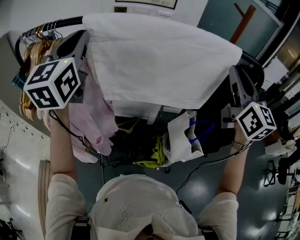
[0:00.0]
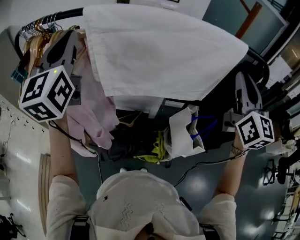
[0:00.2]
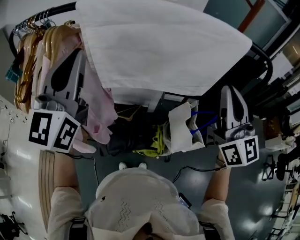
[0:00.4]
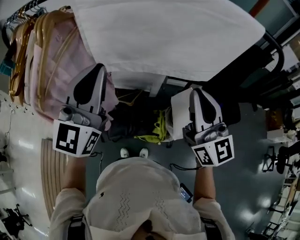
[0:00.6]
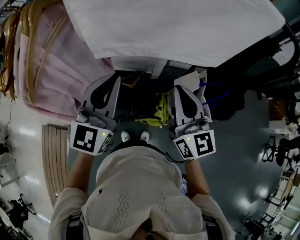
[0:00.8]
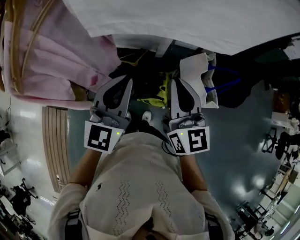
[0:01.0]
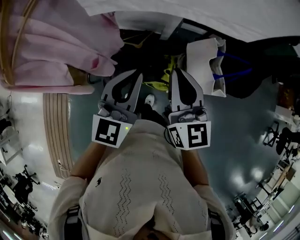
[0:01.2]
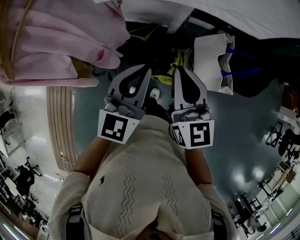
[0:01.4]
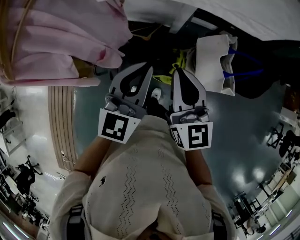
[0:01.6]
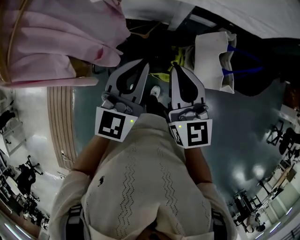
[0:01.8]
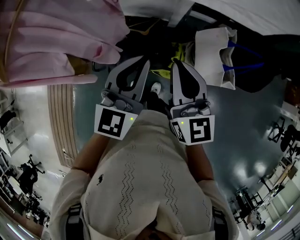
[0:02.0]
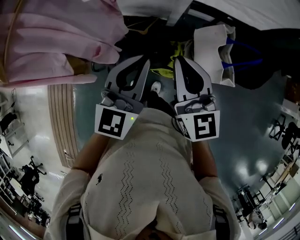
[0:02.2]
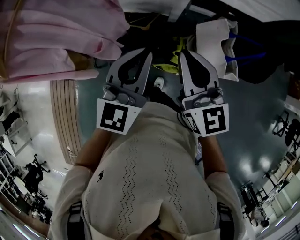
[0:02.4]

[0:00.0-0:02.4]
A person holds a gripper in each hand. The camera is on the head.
0:00.0 to 0:01.2: The left gripper shifts approximately 40 cm downward, to the right and backward, and changes its angle by about 20 degrees, while the right gripper heads downward and to the left, covering about 35 cm.
0:01.2 to 0:02.4: There are only small adjustments of the grippers.

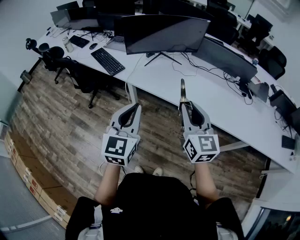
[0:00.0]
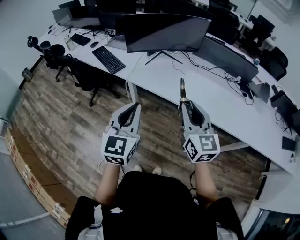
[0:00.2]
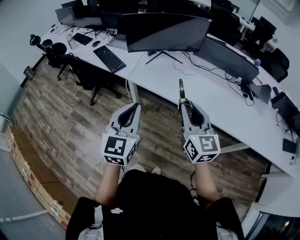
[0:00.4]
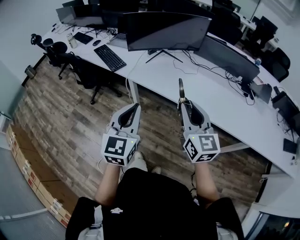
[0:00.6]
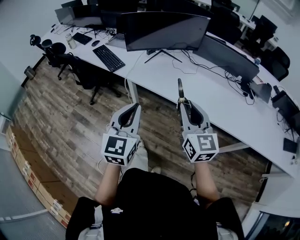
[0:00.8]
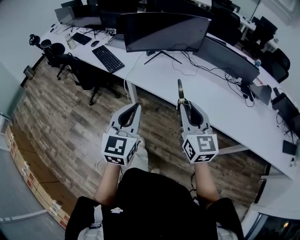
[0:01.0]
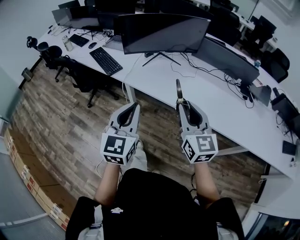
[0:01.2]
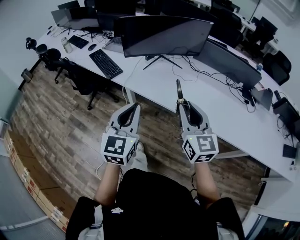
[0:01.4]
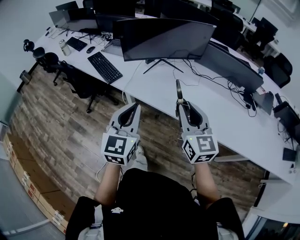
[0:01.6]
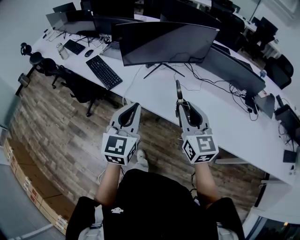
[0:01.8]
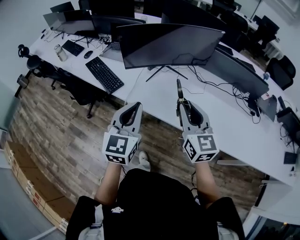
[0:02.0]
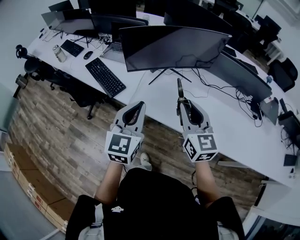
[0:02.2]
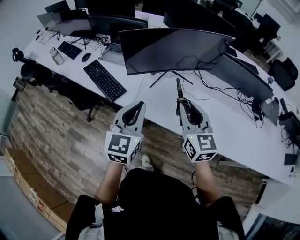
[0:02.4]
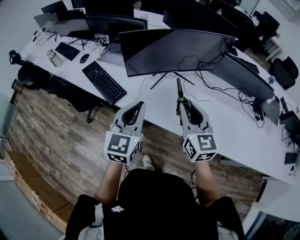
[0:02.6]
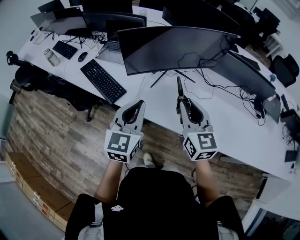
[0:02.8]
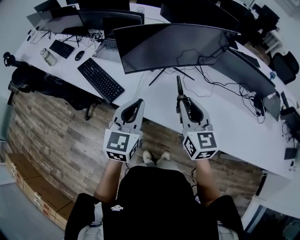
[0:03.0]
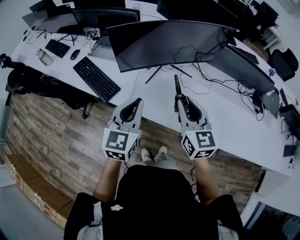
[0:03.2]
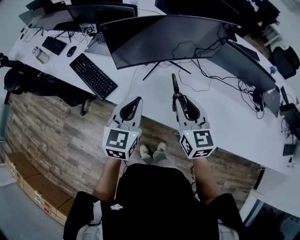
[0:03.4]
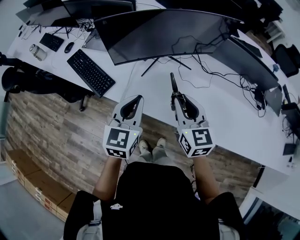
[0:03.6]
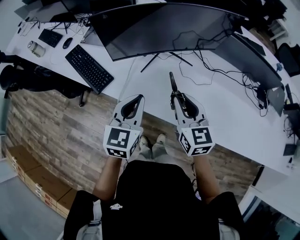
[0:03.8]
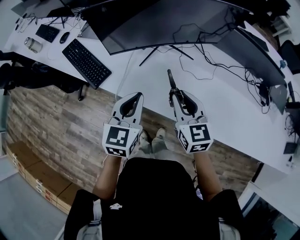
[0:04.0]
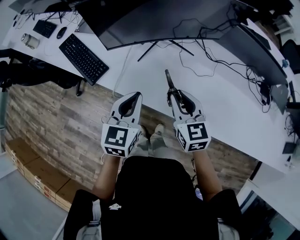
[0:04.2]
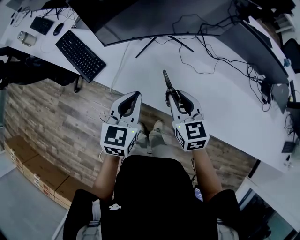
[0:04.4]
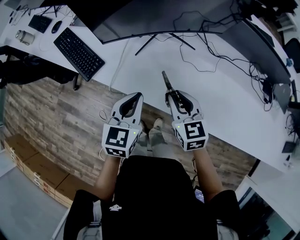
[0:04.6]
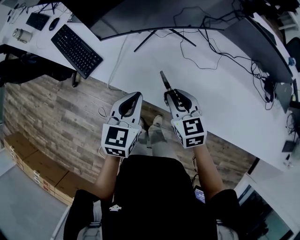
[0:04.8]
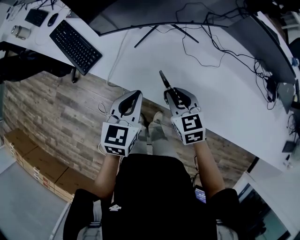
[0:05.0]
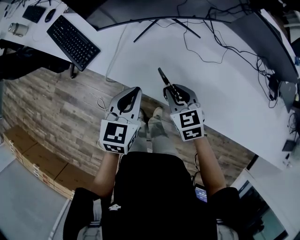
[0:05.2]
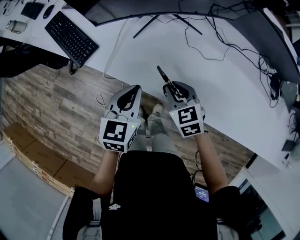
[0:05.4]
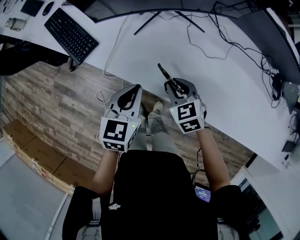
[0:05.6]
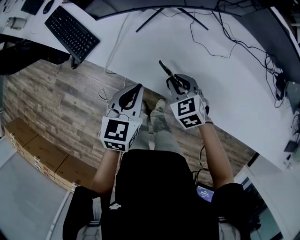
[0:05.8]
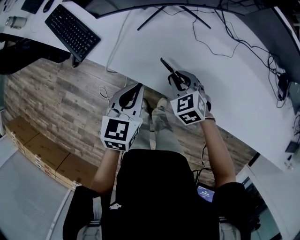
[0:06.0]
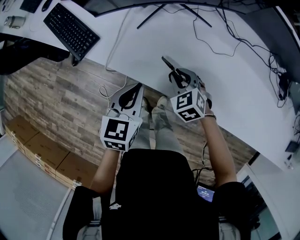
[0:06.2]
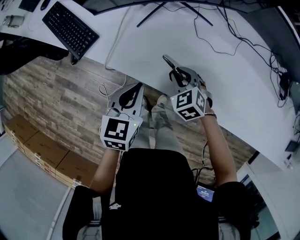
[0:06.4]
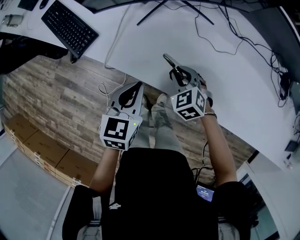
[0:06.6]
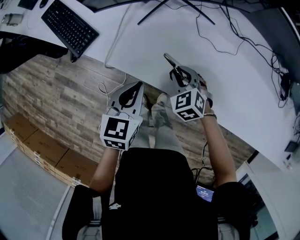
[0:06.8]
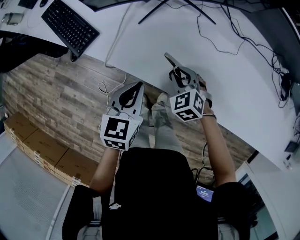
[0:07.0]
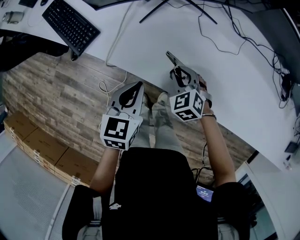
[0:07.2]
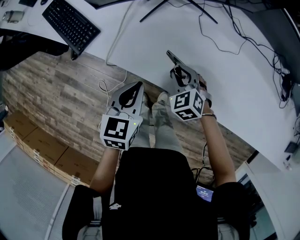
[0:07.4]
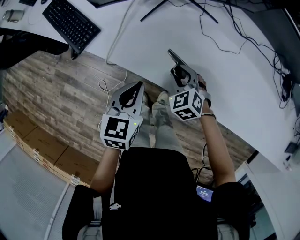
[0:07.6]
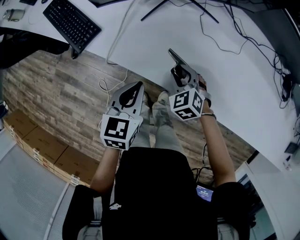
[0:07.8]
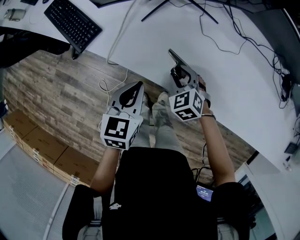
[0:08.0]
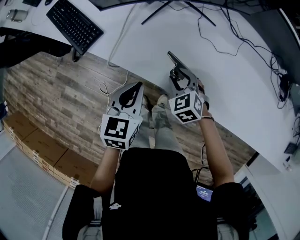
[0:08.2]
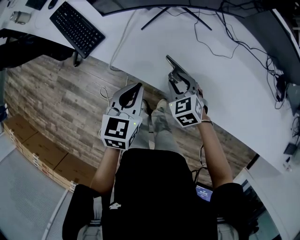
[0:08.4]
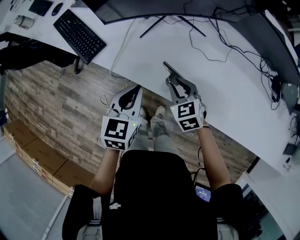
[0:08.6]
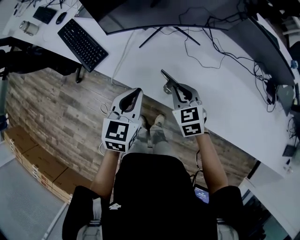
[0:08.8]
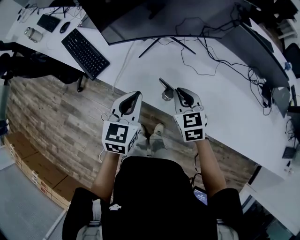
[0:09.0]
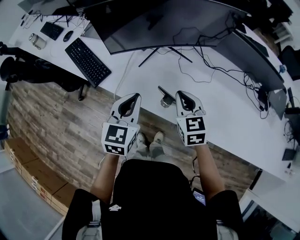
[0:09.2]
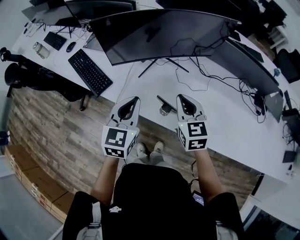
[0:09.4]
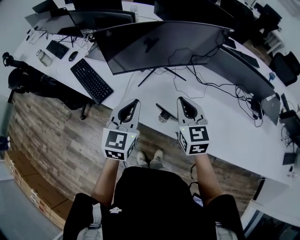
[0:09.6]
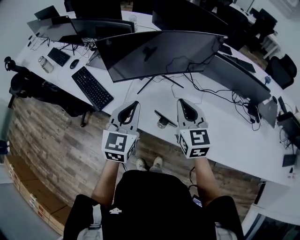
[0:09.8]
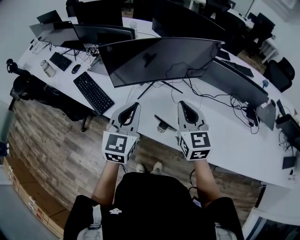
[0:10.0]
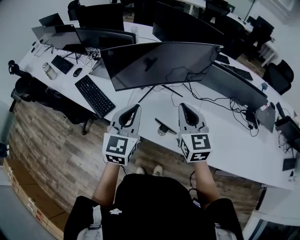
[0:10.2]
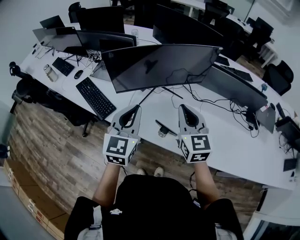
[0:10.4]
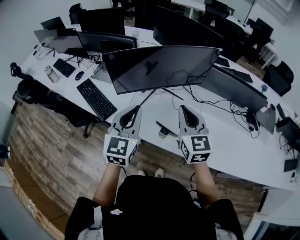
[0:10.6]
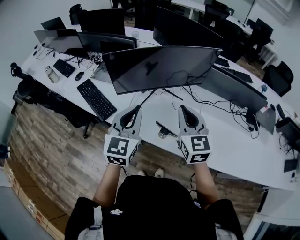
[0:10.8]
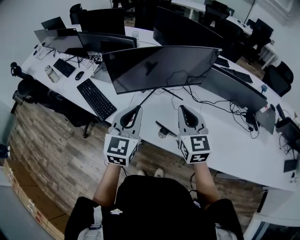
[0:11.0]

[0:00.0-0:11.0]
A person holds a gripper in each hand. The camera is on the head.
0:00.0 to 0:01.6: Both grippers move forward, some 10 cm.
0:01.6 to 0:03.2: The right gripper moves forward and to the left, roughly 25 cm; the left gripper travels forward by approximately 25 cm.
0:03.2 to 0:04.8: The left gripper goes roughly 15 cm downward and to the right. The right gripper is displaced downward by approximately 20 cm, and turns by about 30 degrees.
0:04.8 to 0:06.2: The left gripper shifts about 10 cm downward. The right gripper travels downward by some 15 cm, and turns by some 30 degrees.
0:06.2 to 0:07.8: There are only small adjustments of the grippers.
0:07.8 to 0:09.4: The grippers both shift upward by about 25 cm. The left gripper turns by roughly 20 degrees. The right gripper changes its angle by some 40 degrees, and closes its fingers.
0:09.4 to 0:11.0: Both grippers travel together upward, approximately 10 cm.

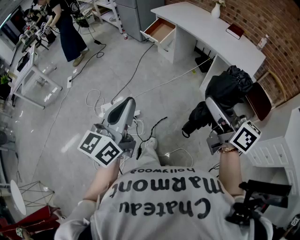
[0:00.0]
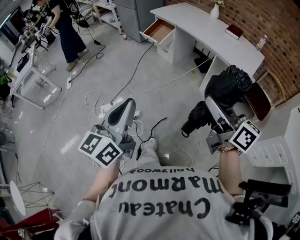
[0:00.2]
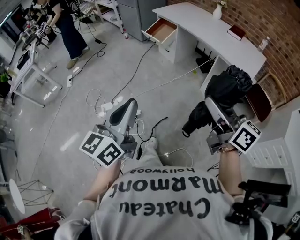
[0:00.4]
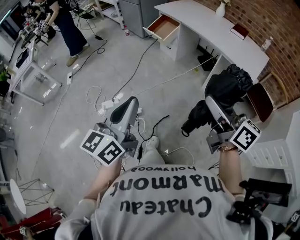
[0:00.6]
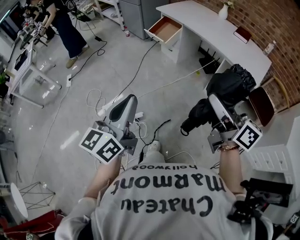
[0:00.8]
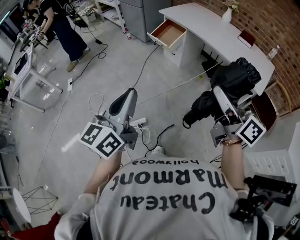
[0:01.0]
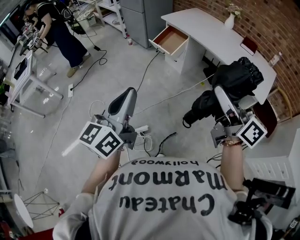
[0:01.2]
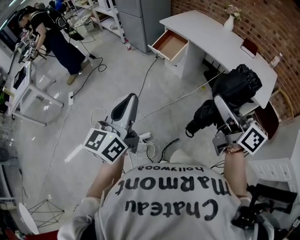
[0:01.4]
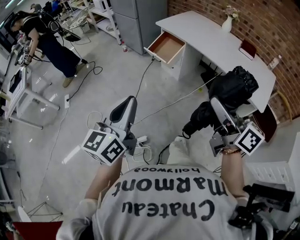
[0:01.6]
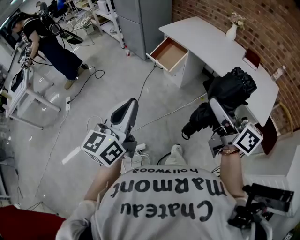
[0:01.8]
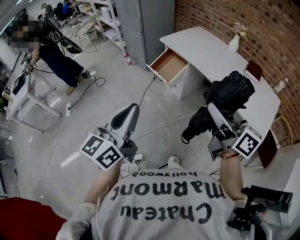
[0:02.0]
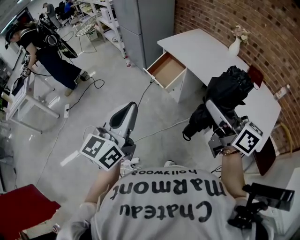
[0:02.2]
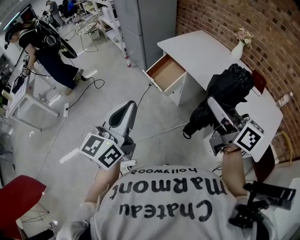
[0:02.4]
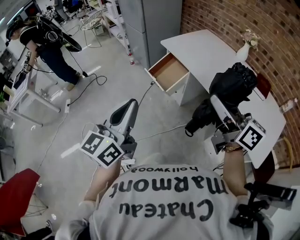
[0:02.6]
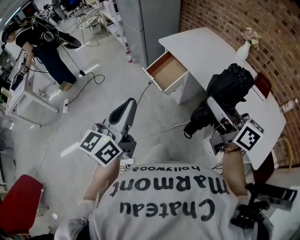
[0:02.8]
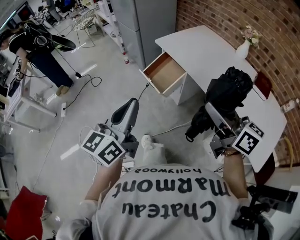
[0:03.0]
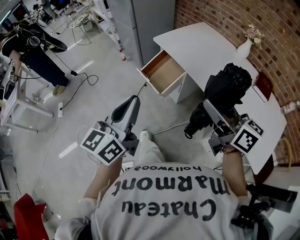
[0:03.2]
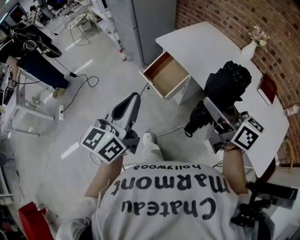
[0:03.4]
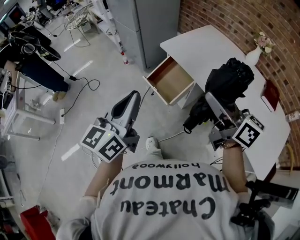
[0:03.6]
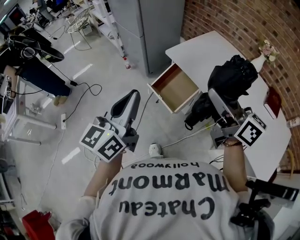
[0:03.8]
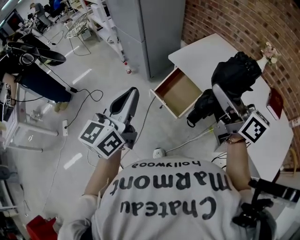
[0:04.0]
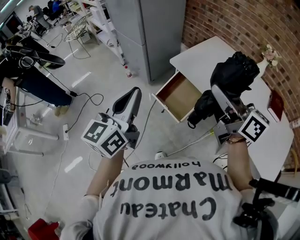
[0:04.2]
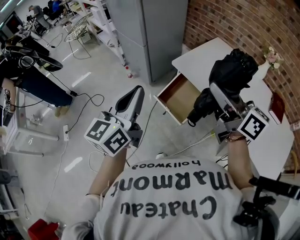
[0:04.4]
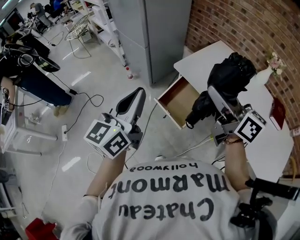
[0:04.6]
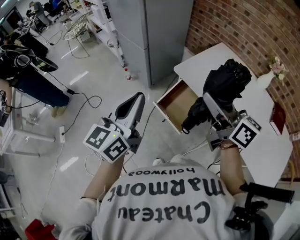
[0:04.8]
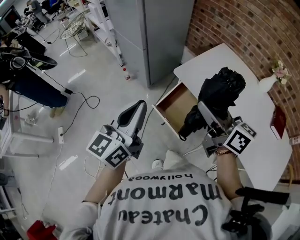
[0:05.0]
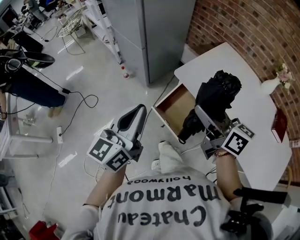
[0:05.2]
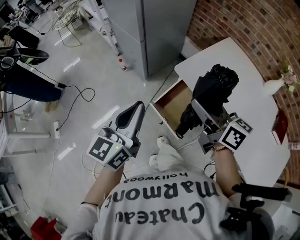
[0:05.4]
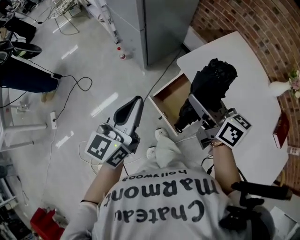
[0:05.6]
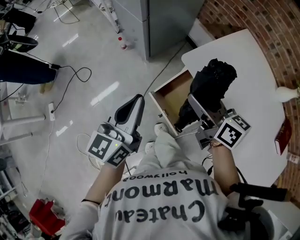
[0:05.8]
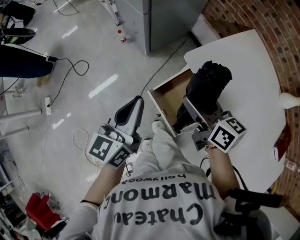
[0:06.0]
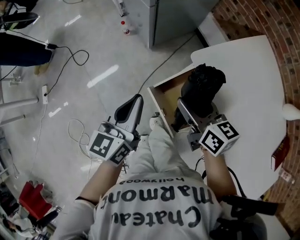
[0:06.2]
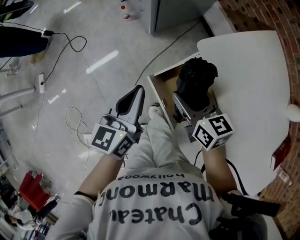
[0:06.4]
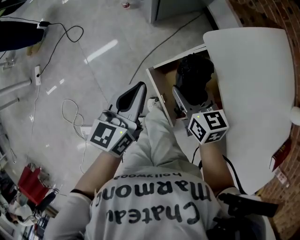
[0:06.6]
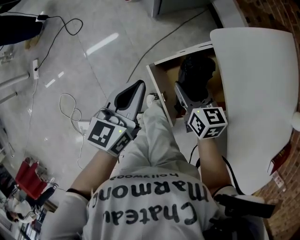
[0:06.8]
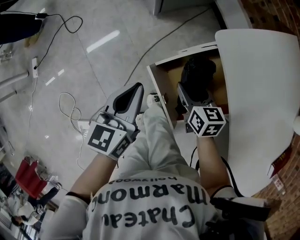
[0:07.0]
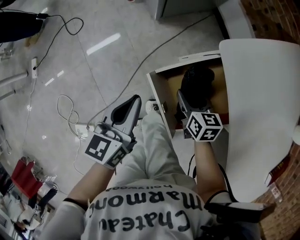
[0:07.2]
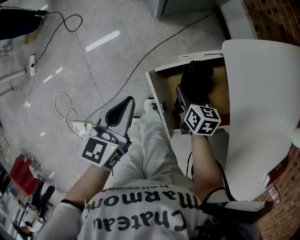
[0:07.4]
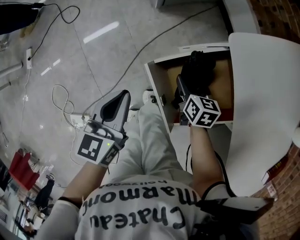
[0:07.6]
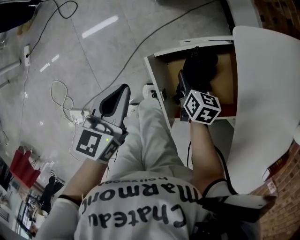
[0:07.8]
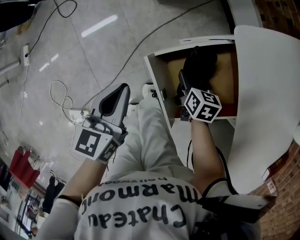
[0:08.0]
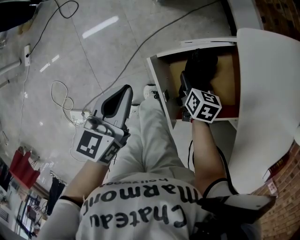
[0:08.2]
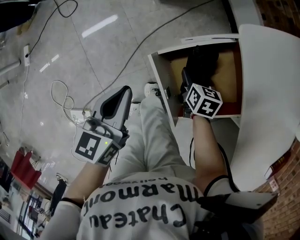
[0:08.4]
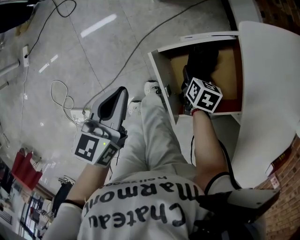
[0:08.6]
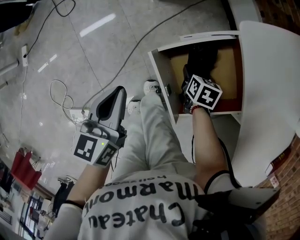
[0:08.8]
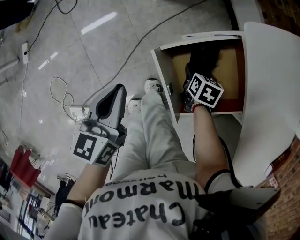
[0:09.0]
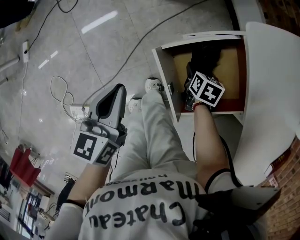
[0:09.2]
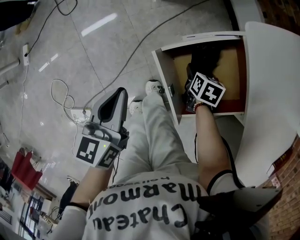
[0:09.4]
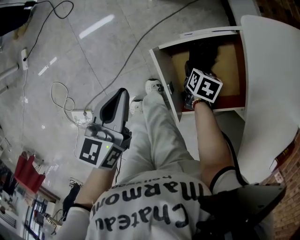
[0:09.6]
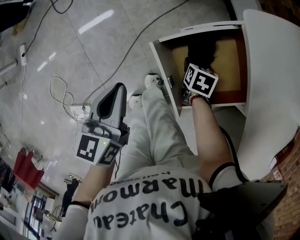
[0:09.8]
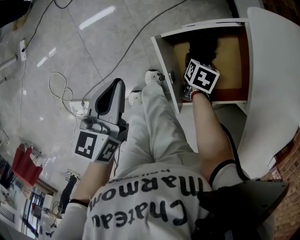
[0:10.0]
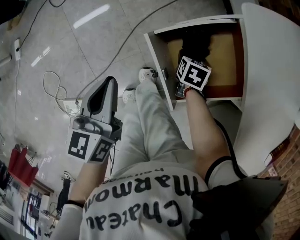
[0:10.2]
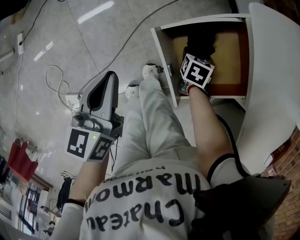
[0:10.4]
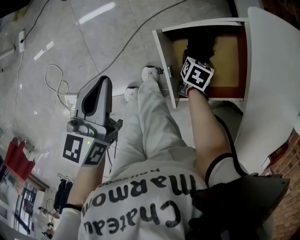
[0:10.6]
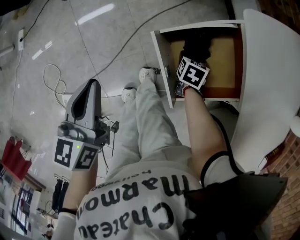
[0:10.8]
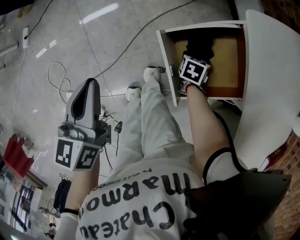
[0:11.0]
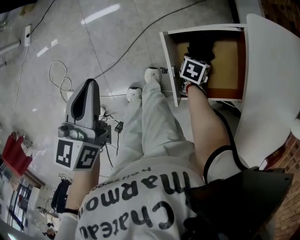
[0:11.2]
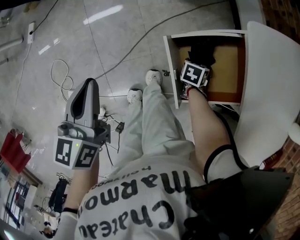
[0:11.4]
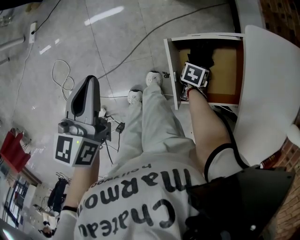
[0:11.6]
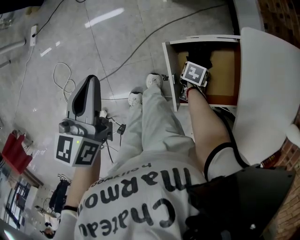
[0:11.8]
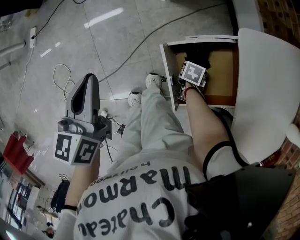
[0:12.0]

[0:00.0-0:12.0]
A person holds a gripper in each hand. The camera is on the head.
0:00.0 to 0:01.6: Both grippers travel together forward, approximately 30 cm.
0:01.6 to 0:03.0: Both grippers move forward and to the right, about 35 cm.
0:03.0 to 0:04.4: The right gripper is displaced forward and to the left by approximately 30 cm; the left gripper goes some 30 cm forward.
0:04.4 to 0:06.0: The two grippers go approximately 30 cm downward and forward. The right gripper changes its angle by roughly 30 degrees.
0:06.0 to 0:07.6: The left gripper is displaced downward by approximately 20 cm, and changes its angle by some 20 degrees, while the right gripper goes approximately 35 cm downward, and angles its fingers downward, by some 30 degrees.
0:07.6 to 0:09.0: The right gripper moves downward, approximately 5 cm.
0:09.0 to 0:10.4: The grippers move only a little.
0:10.4 to 0:12.0: The left gripper travels upward by roughly 10 cm.
